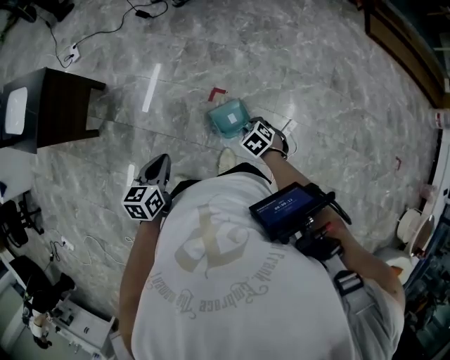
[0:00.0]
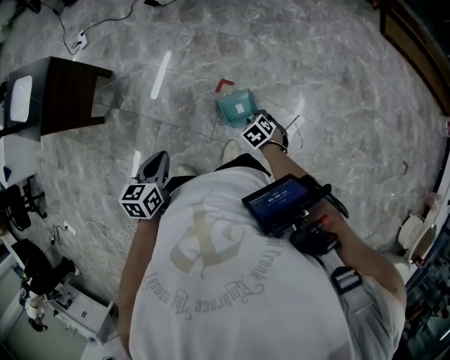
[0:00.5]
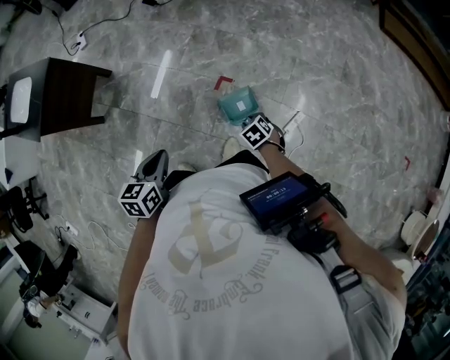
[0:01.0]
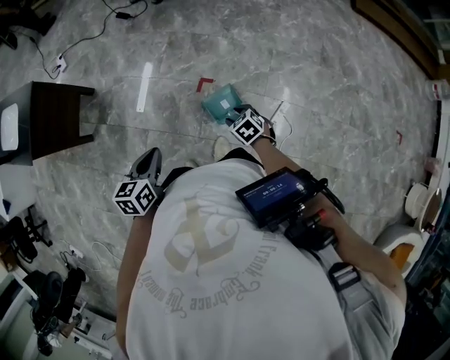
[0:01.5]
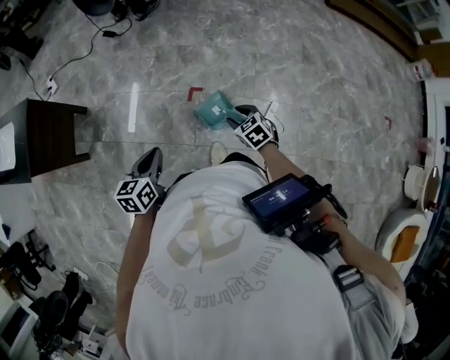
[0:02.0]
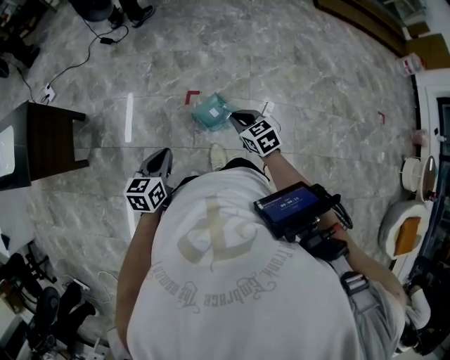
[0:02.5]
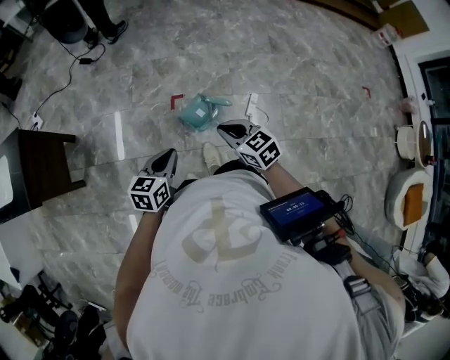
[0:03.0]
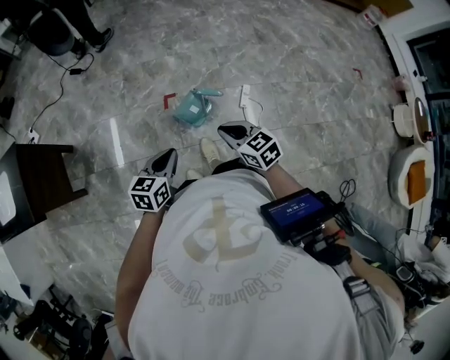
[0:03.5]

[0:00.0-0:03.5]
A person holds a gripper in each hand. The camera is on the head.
0:00.0 to 0:02.0: The right gripper changes place by roughly 5 cm, rotates some 20 degrees, and opens up.
0:02.0 to 0:03.5: The right gripper goes about 20 cm backward and upward, swivels some 30 degrees, and closes. Meanwhile the left gripper goes approximately 10 cm backward and to the right, and turns by approximately 30 degrees.

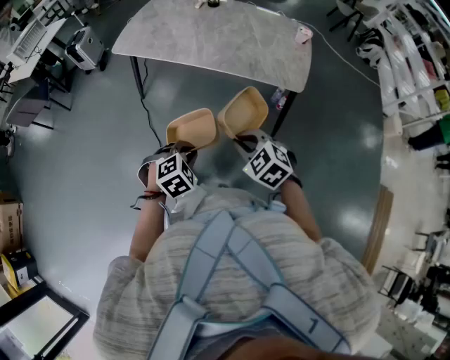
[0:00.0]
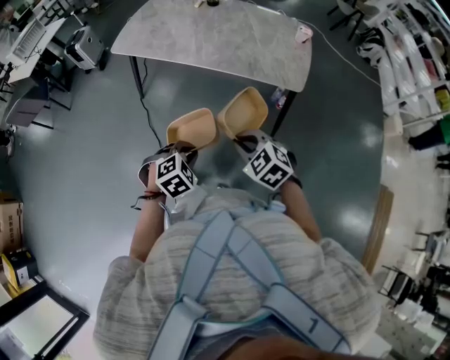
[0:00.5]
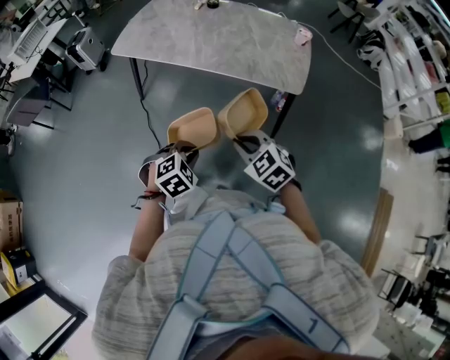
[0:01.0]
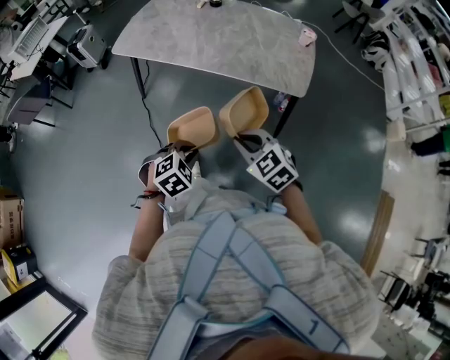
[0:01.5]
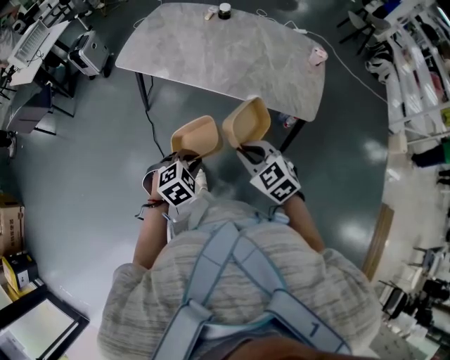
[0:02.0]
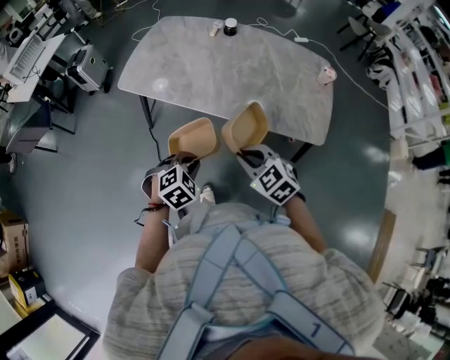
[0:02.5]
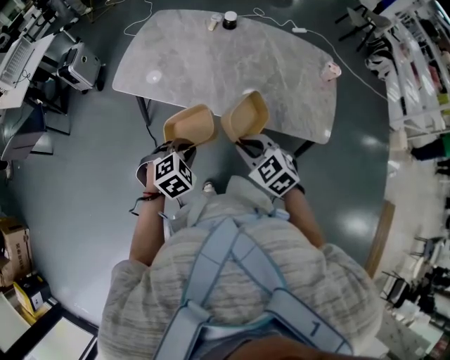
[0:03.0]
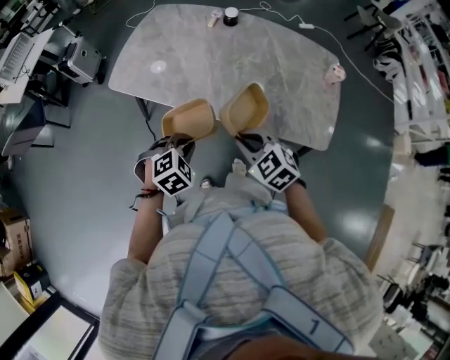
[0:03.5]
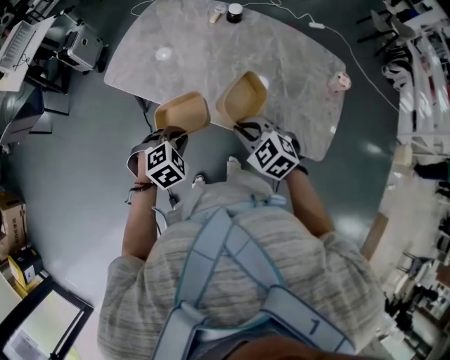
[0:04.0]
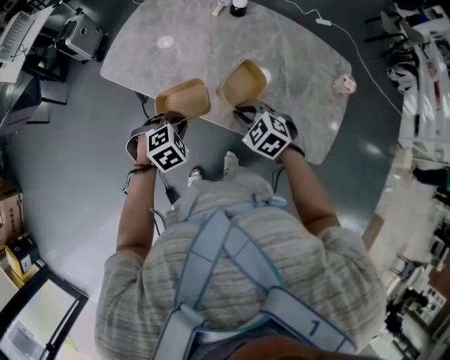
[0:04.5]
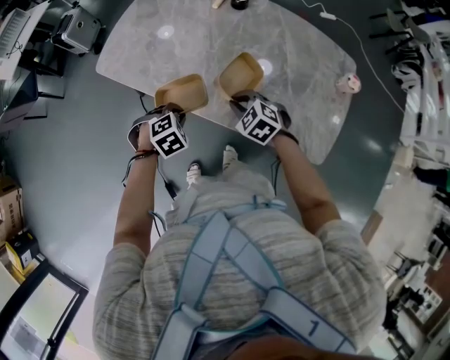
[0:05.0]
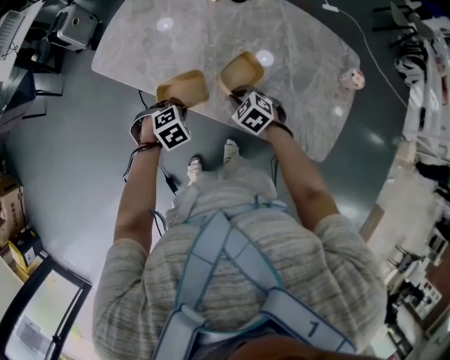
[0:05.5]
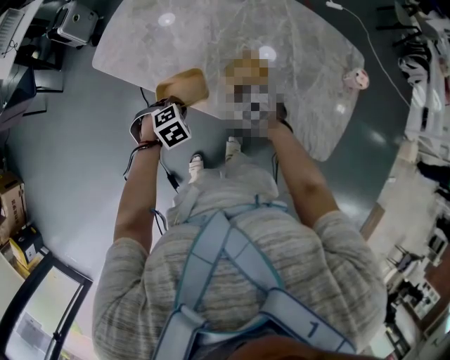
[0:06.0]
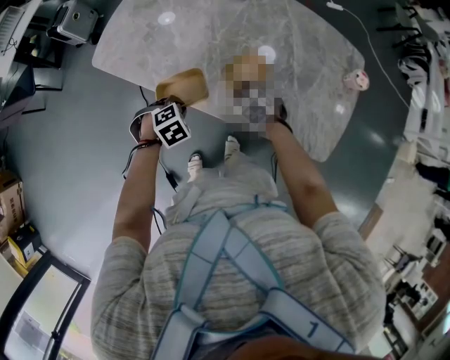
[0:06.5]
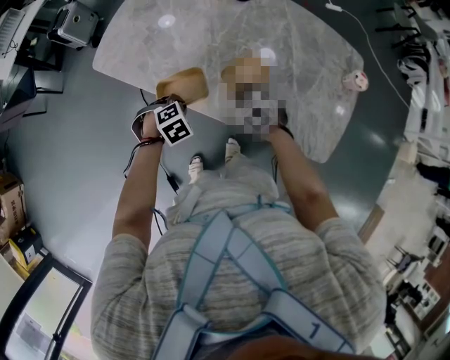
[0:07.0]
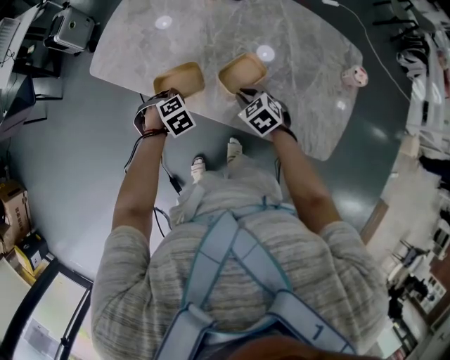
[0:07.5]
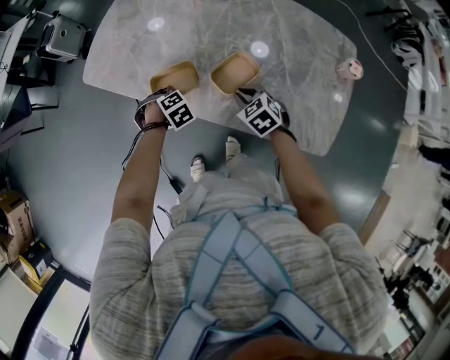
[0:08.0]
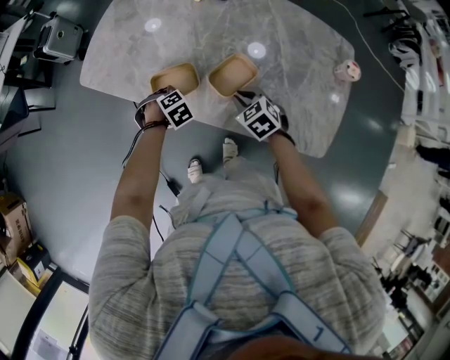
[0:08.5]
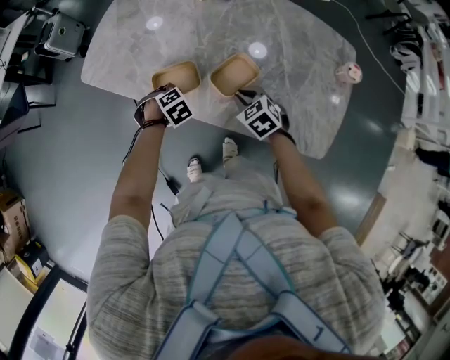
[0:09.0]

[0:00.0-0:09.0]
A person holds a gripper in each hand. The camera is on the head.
0:00.0 to 0:02.0: Both grippers travel together forward, roughly 10 cm.
0:02.0 to 0:04.5: Both grippers move forward, approximately 35 cm.
0:04.5 to 0:07.0: The grippers both shift downward by some 10 cm.
0:07.0 to 0:09.0: The left gripper ends up approximately 10 cm from where it was.

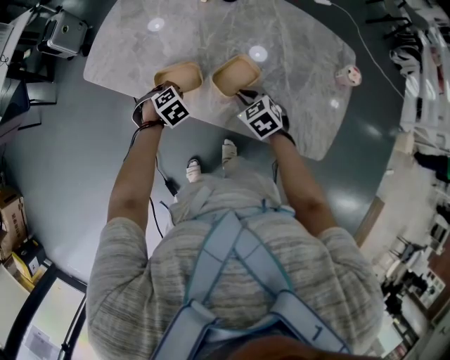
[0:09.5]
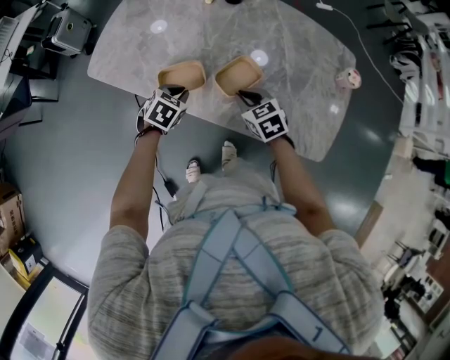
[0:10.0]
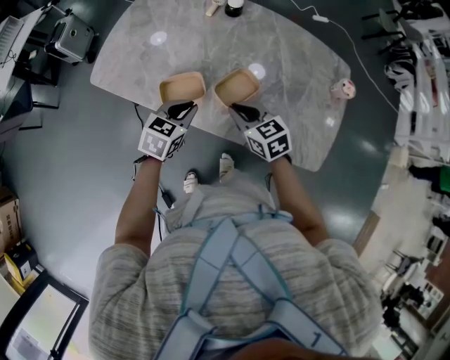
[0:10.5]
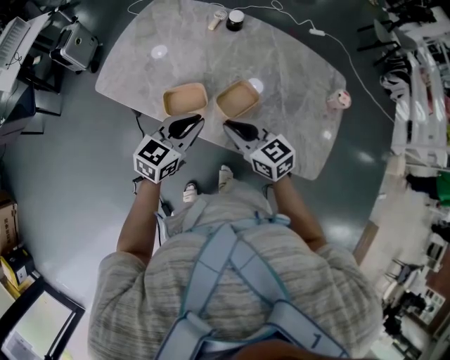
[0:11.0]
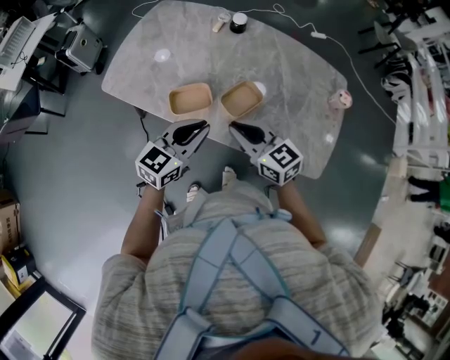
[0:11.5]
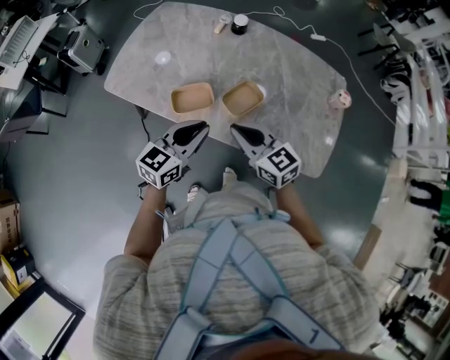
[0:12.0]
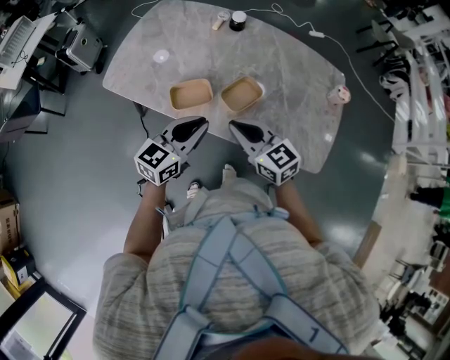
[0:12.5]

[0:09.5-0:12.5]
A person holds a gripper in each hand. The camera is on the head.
0:09.5 to 0:11.0: The left gripper travels upward by some 20 cm, and tilts its fingers roughly 60 degrees upward; the right gripper moves upward, about 15 cm, and tilts its fingers some 30 degrees upward.
0:11.0 to 0:12.5: The left gripper moves roughly 5 cm. Meanwhile the right gripper shifts by some 5 cm.

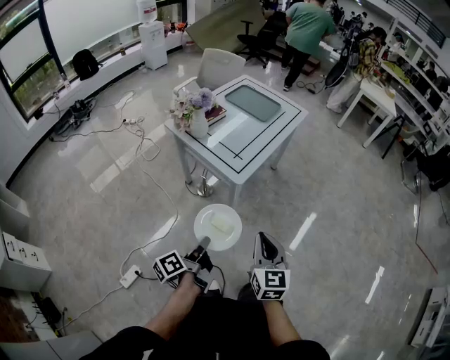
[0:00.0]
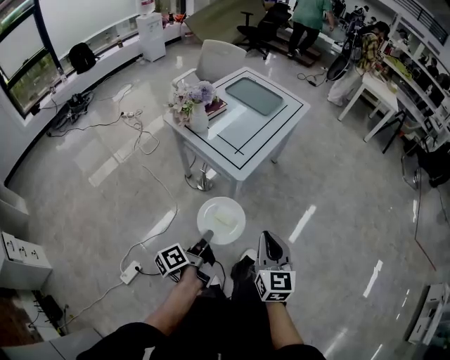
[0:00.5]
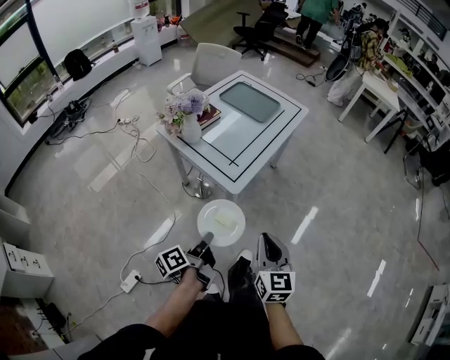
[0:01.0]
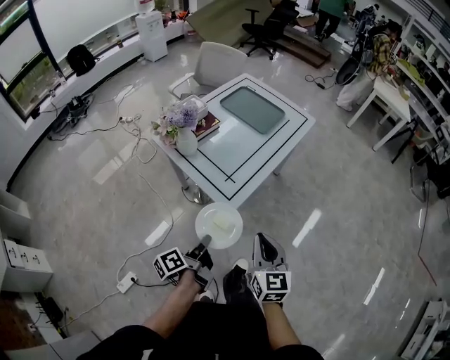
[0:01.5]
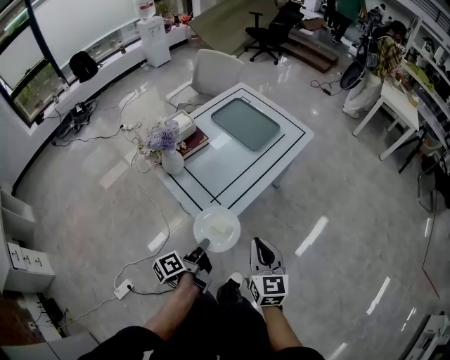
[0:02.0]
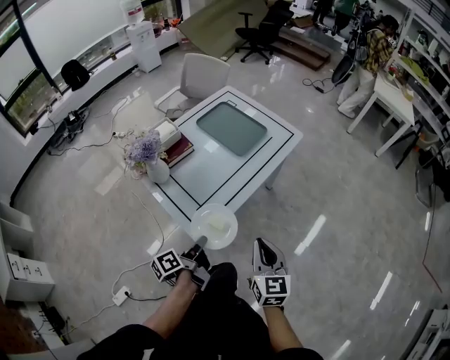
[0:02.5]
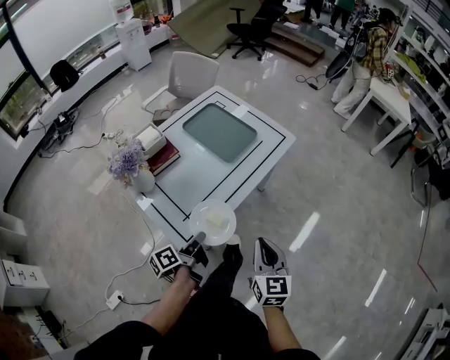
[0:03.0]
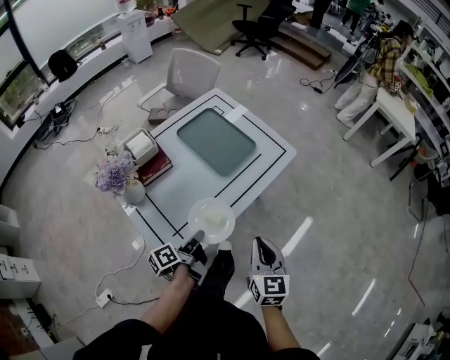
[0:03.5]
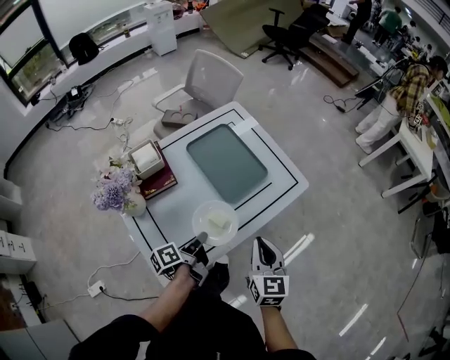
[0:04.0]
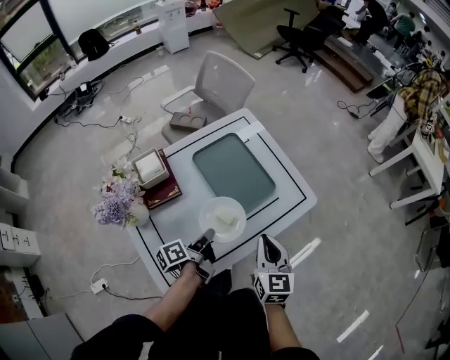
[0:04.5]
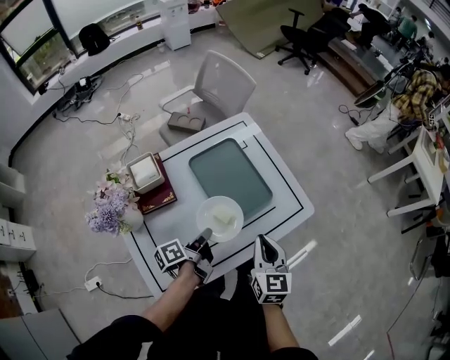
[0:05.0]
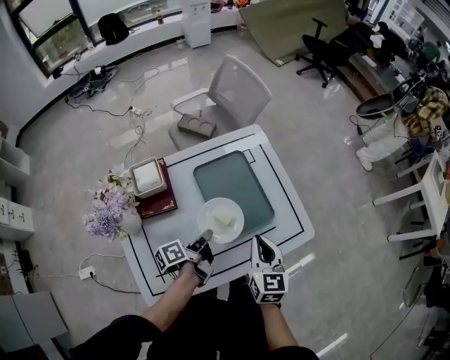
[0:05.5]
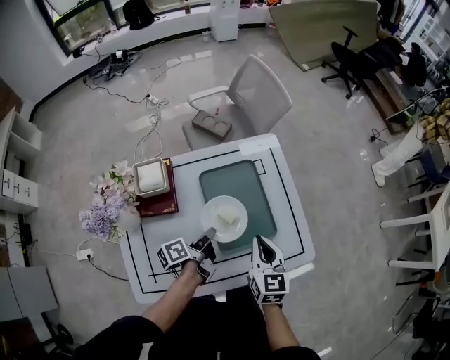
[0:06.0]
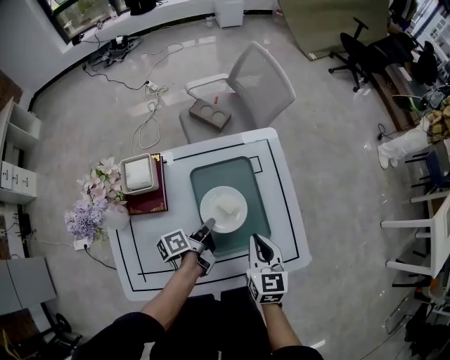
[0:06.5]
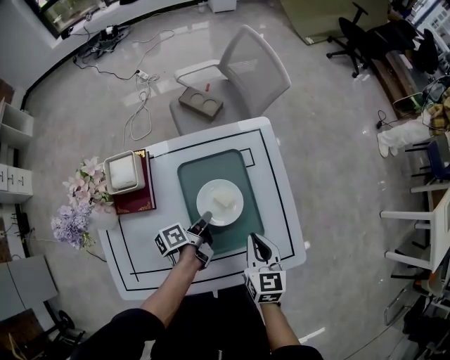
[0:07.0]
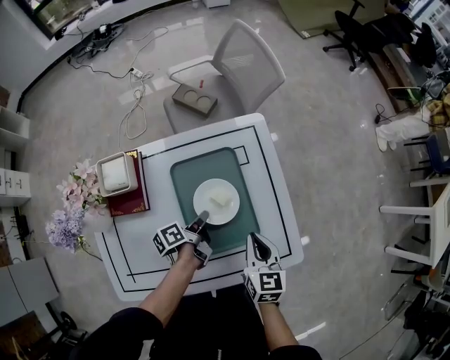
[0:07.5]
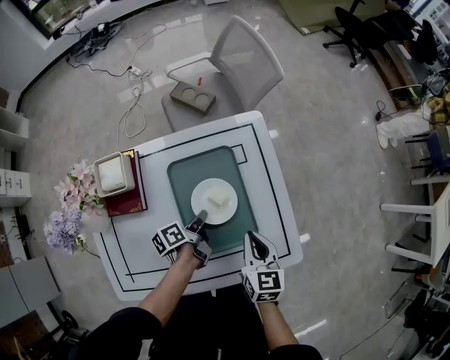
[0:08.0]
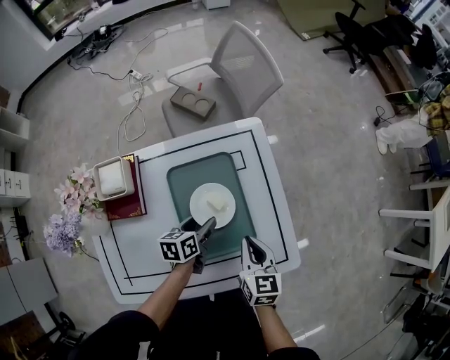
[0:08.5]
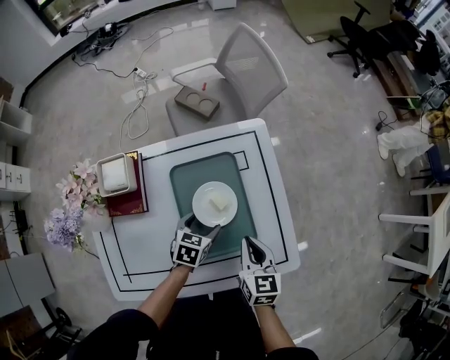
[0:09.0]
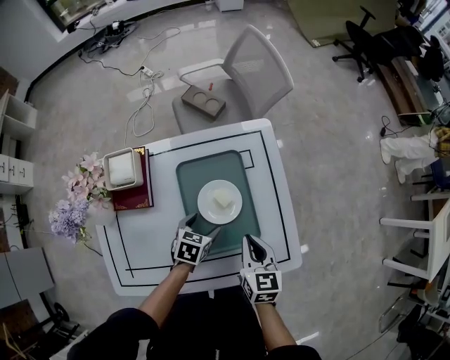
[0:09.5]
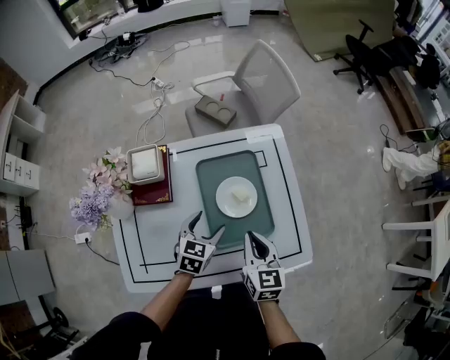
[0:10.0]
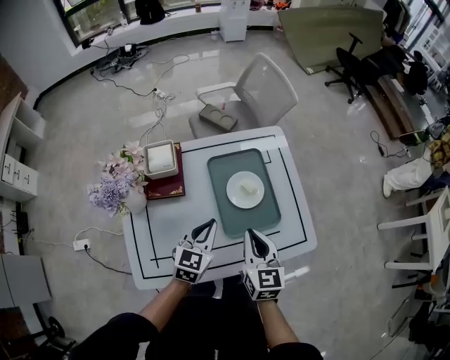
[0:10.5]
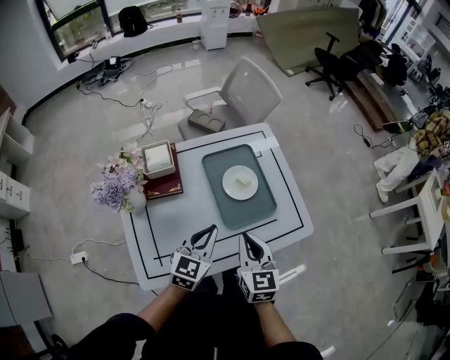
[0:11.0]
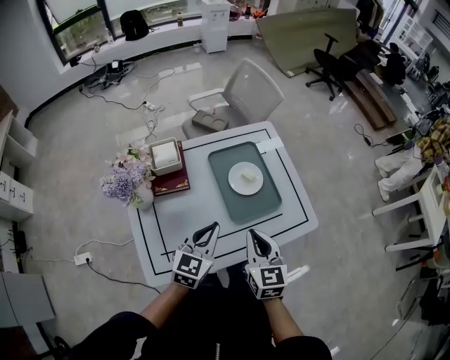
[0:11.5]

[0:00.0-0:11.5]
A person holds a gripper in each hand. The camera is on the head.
0:00.0 to 0:02.0: The right gripper moves some 30 cm.
0:02.0 to 0:04.0: The right gripper ends up approximately 35 cm from where it was.
0:04.0 to 0:06.0: The right gripper shifts by approximately 25 cm, and changes its angle by some 20 degrees.
0:06.0 to 0:07.5: The right gripper ends up some 10 cm from where it was.
0:09.5 to 0:11.5: The right gripper shifts by about 25 cm.
